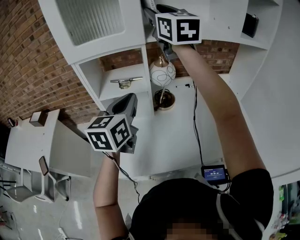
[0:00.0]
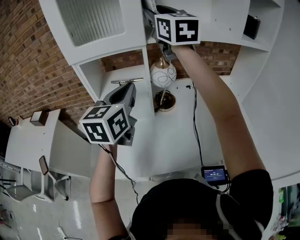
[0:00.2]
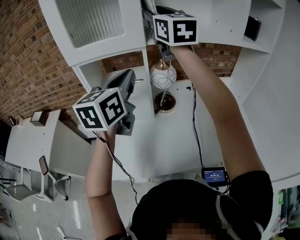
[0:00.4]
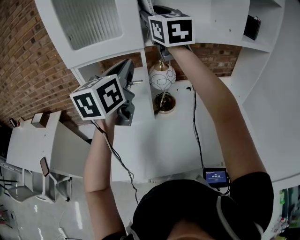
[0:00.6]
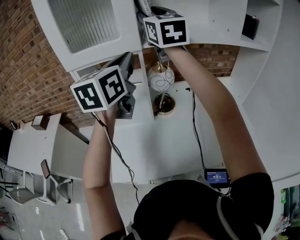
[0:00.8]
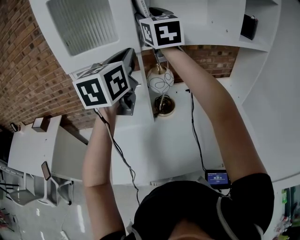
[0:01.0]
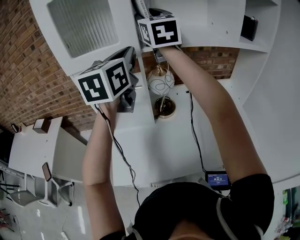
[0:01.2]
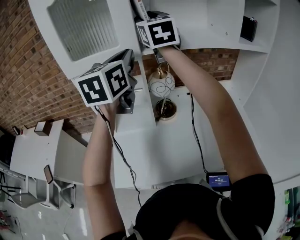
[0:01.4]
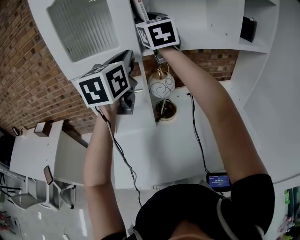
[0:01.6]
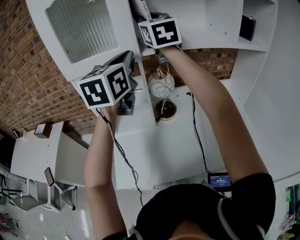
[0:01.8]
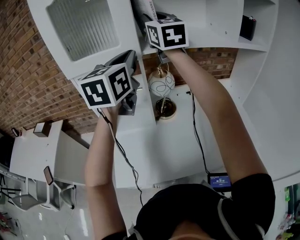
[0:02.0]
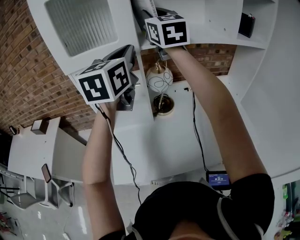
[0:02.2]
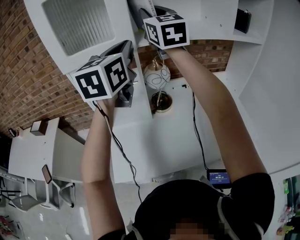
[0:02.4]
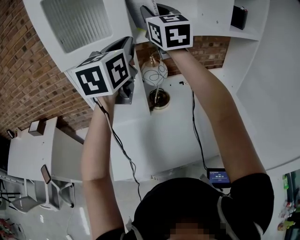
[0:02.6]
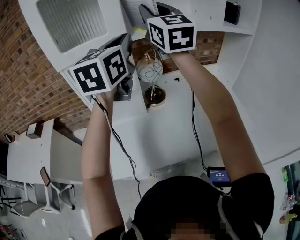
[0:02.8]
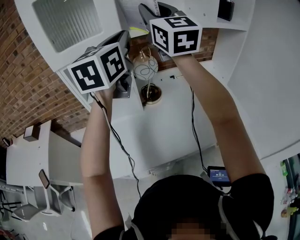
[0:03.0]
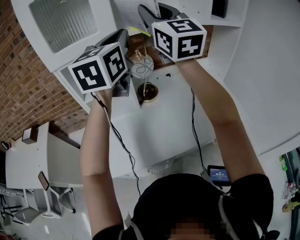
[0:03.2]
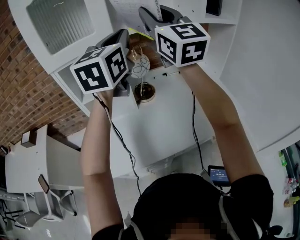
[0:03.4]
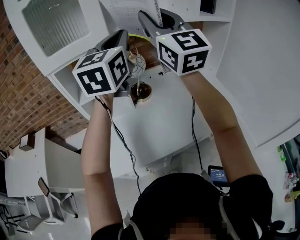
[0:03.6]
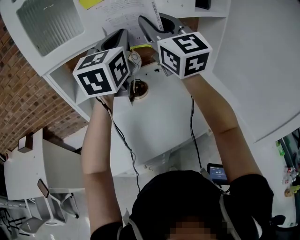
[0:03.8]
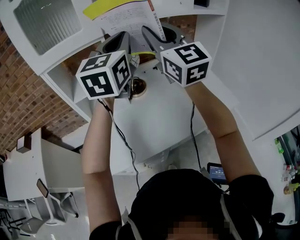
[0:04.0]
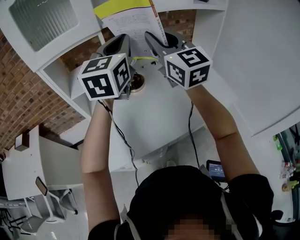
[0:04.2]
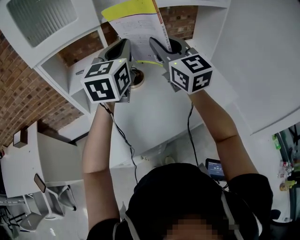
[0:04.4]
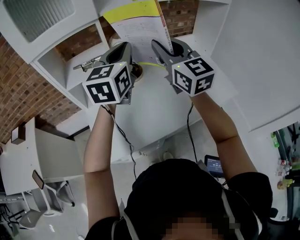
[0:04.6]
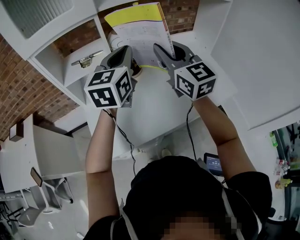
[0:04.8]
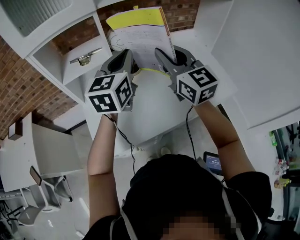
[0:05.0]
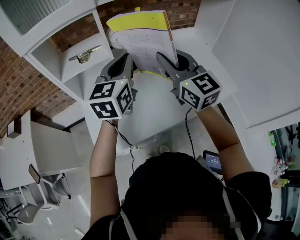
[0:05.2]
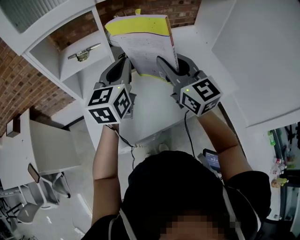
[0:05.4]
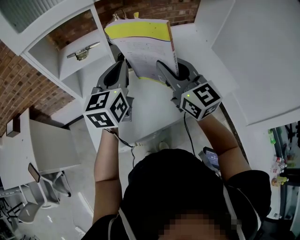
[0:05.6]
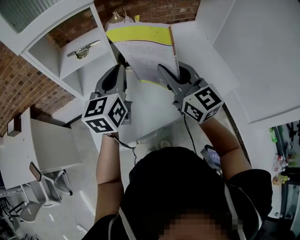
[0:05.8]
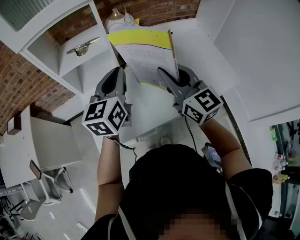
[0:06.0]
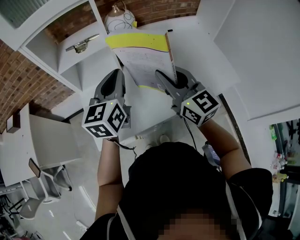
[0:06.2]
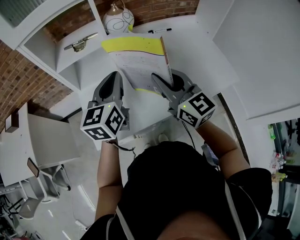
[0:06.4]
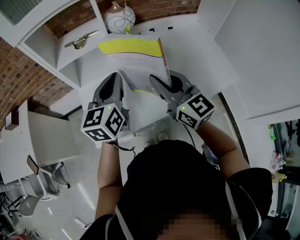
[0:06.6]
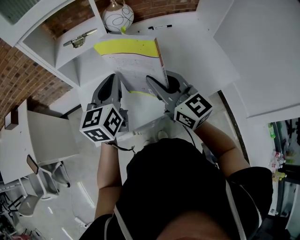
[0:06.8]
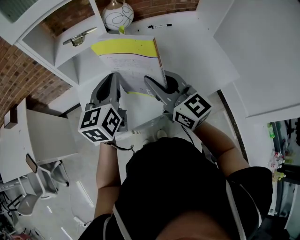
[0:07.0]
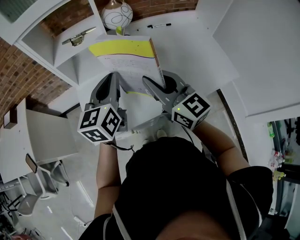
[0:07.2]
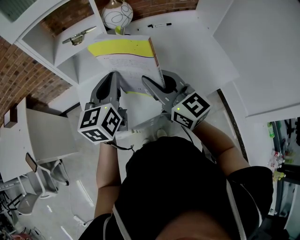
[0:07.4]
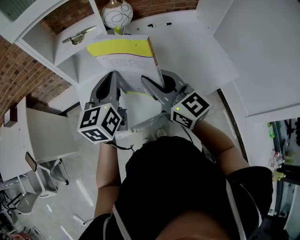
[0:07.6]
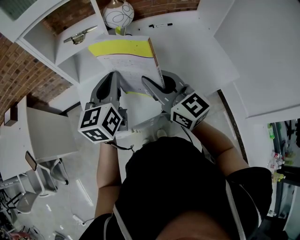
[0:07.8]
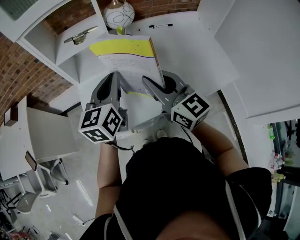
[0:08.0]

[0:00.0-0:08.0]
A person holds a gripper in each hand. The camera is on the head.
0:00.0 to 0:01.6: The left gripper goes roughly 20 cm upward and forward.
0:01.6 to 0:03.2: The right gripper shifts some 15 cm backward and to the right; the left gripper is displaced backward and to the right by about 10 cm.
0:03.2 to 0:04.8: The two grippers go about 20 cm downward.
0:04.8 to 0:06.4: The left gripper heads downward, backward and to the left, covering roughly 15 cm. Meanwhile the right gripper travels downward and backward by some 15 cm.
0:06.4 to 0:08.0: The grippers move only a little.

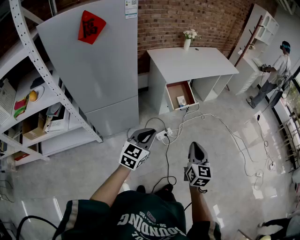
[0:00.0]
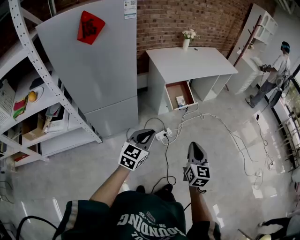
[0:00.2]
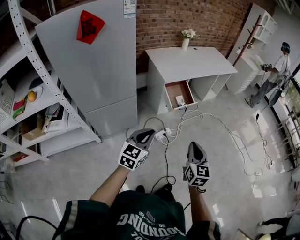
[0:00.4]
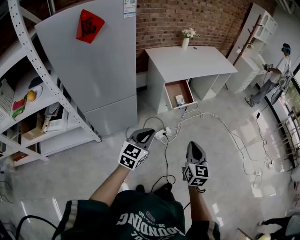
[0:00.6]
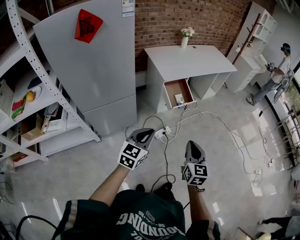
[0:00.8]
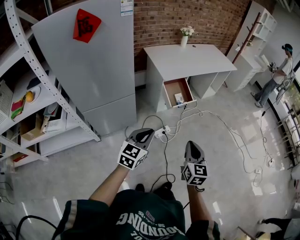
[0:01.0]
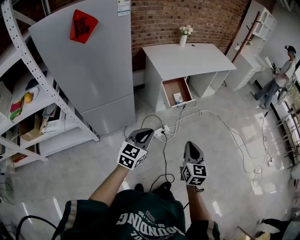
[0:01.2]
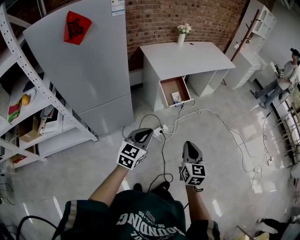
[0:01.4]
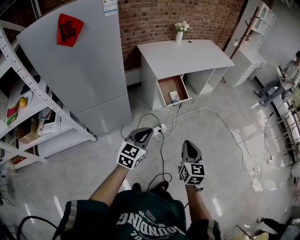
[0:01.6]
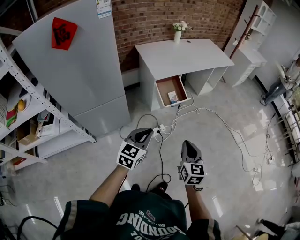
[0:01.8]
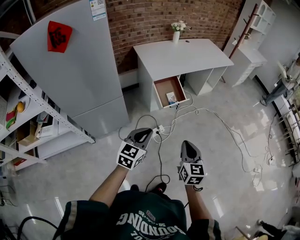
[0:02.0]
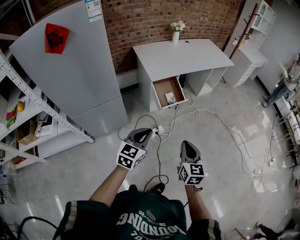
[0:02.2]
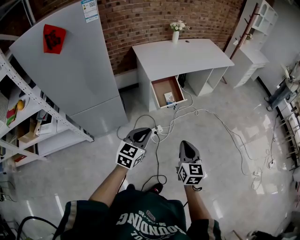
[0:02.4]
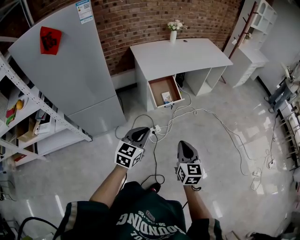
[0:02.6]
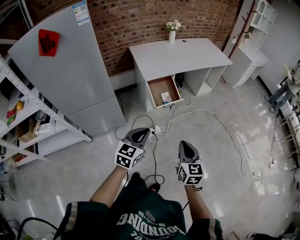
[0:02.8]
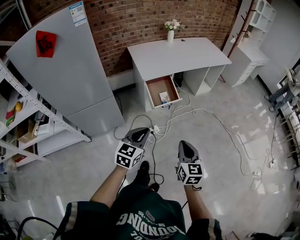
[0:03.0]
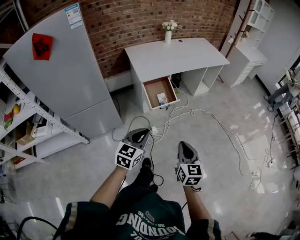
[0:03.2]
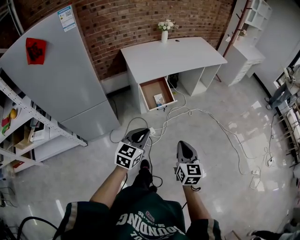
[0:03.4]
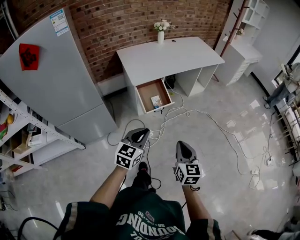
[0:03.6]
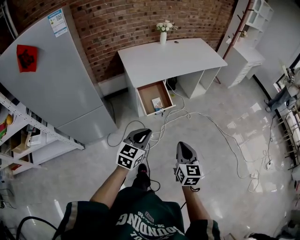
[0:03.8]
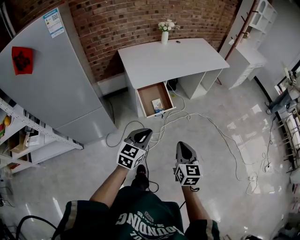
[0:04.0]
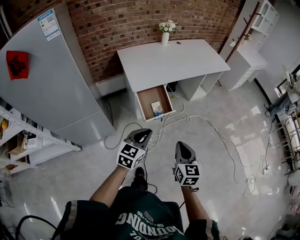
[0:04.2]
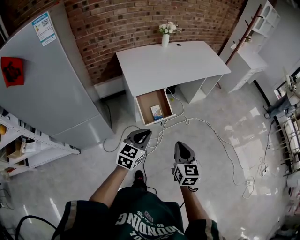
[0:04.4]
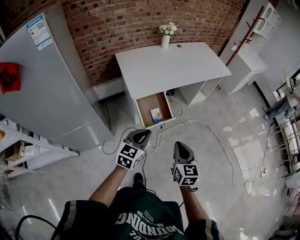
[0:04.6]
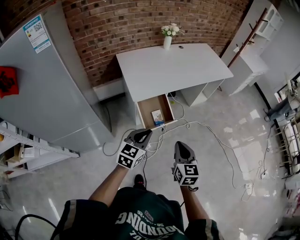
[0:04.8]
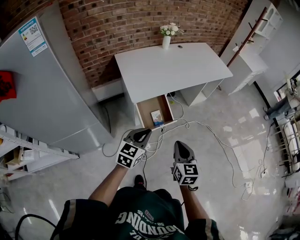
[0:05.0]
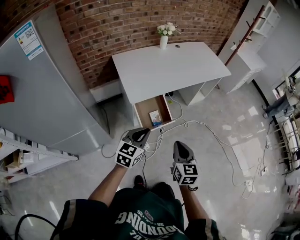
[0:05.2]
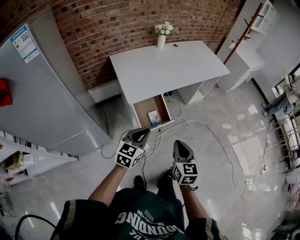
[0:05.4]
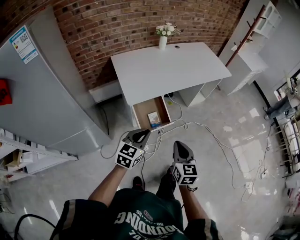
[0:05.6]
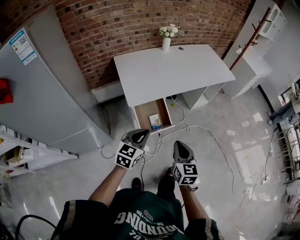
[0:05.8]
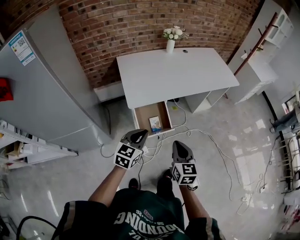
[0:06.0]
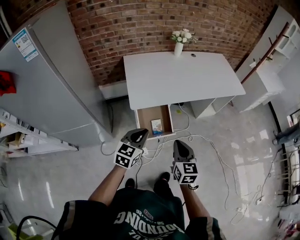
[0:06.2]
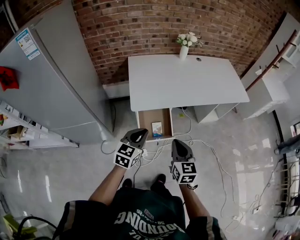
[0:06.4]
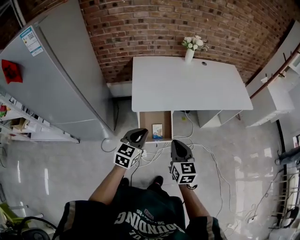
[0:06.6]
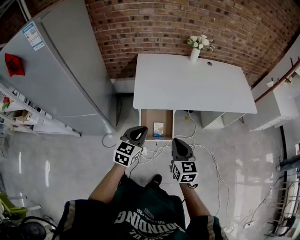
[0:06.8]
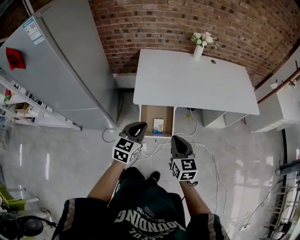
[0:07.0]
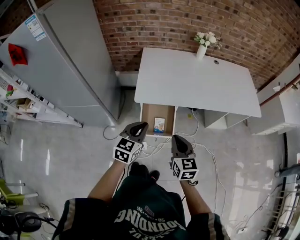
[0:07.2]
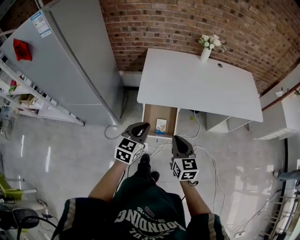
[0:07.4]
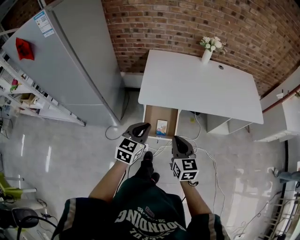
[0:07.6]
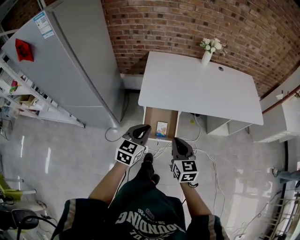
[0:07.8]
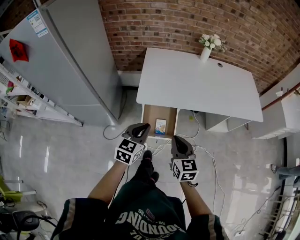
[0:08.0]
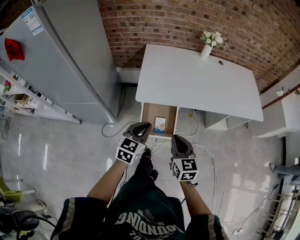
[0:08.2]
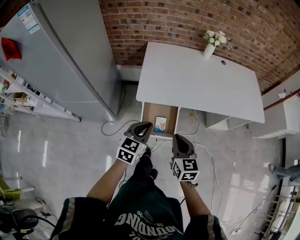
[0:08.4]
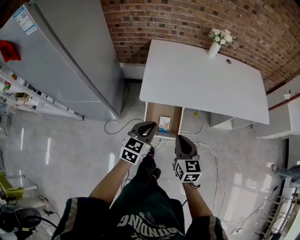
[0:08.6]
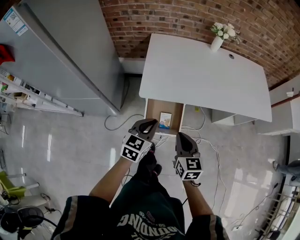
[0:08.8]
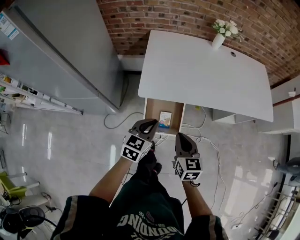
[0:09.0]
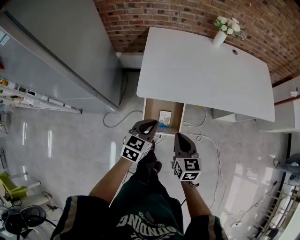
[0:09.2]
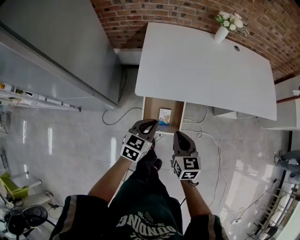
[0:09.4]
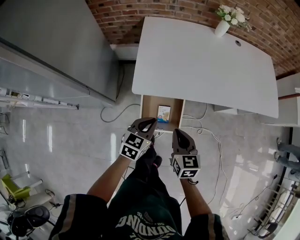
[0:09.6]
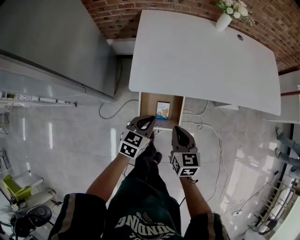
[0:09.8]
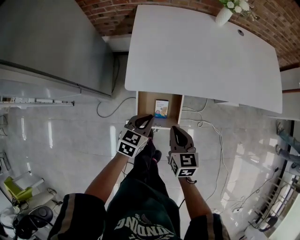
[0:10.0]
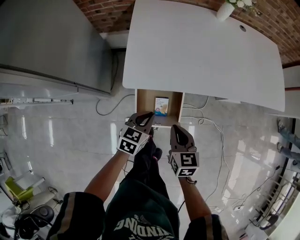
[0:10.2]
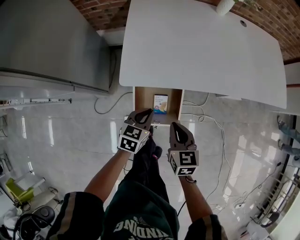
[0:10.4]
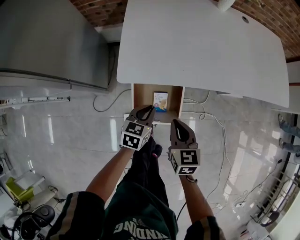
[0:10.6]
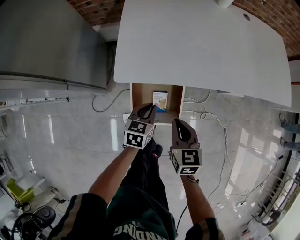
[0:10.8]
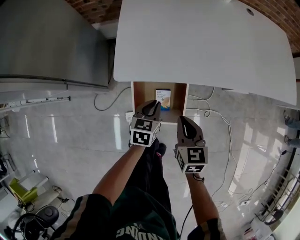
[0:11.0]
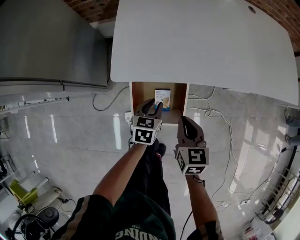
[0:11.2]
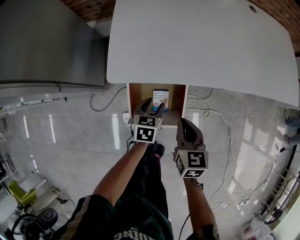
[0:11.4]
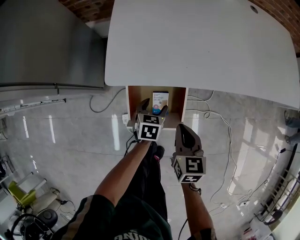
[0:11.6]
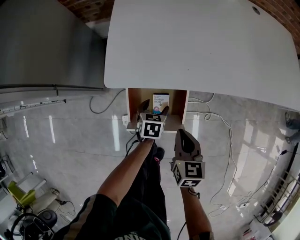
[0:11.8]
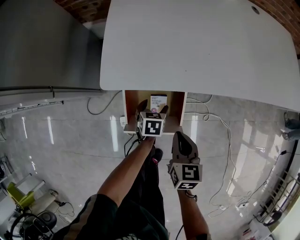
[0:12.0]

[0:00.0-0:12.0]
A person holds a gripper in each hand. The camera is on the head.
0:00.0 to 0:01.6: The left gripper ends up approximately 5 cm from where it was.
0:01.6 to 0:03.0: Both grippers travel together to the right and forward, approximately 15 cm.
0:03.0 to 0:04.4: The two grippers go about 20 cm forward.
0:04.4 to 0:06.0: Both grippers move forward, about 15 cm.
0:06.0 to 0:07.6: The right gripper changes place by about 10 cm, and rotates some 30 degrees, while the left gripper shifts by roughly 10 cm, and changes its angle by some 20 degrees.
0:07.6 to 0:09.0: The grippers both shift downward and forward by some 10 cm.
0:09.0 to 0:10.4: The grippers both shift downward by approximately 15 cm.
0:10.4 to 0:12.0: The left gripper goes roughly 20 cm downward, swivels about 20 degrees, and opens its fingers; the right gripper moves downward, some 10 cm.

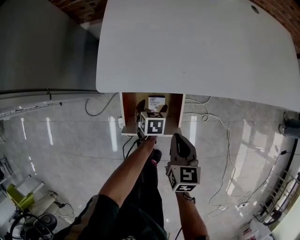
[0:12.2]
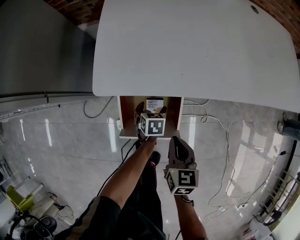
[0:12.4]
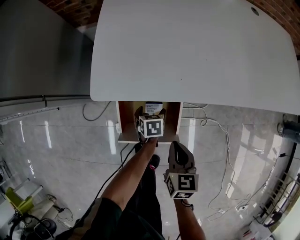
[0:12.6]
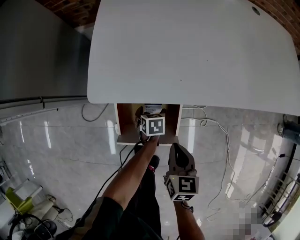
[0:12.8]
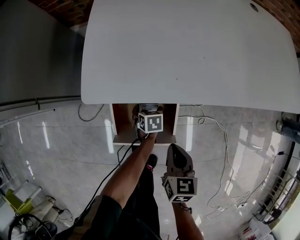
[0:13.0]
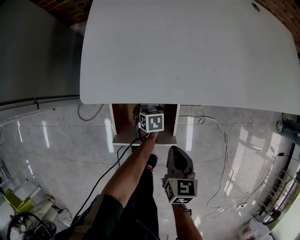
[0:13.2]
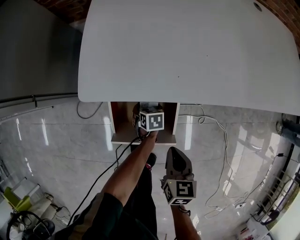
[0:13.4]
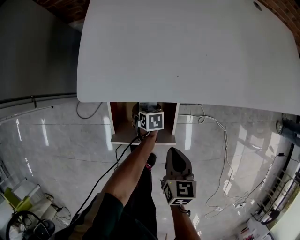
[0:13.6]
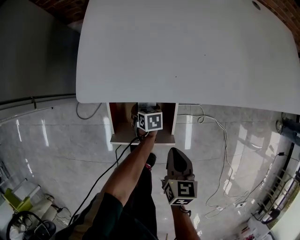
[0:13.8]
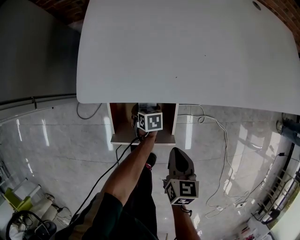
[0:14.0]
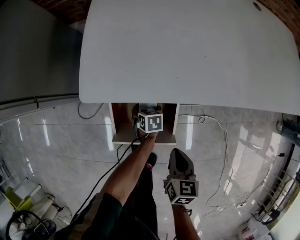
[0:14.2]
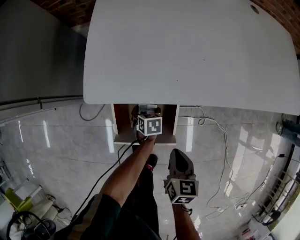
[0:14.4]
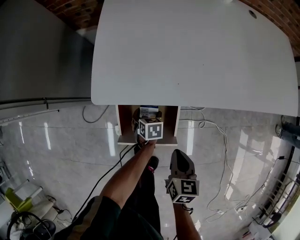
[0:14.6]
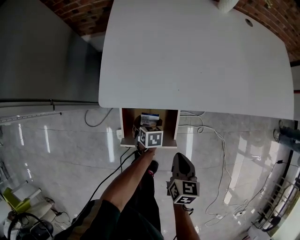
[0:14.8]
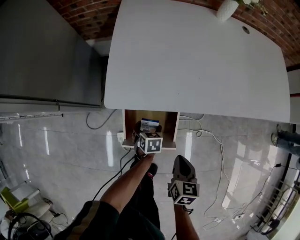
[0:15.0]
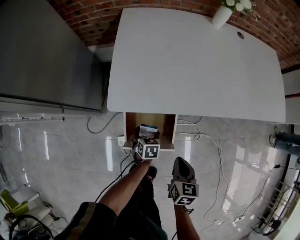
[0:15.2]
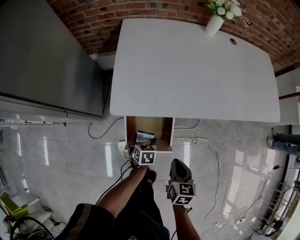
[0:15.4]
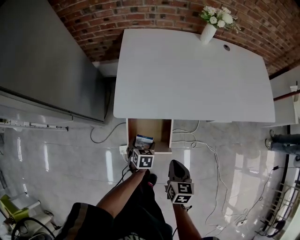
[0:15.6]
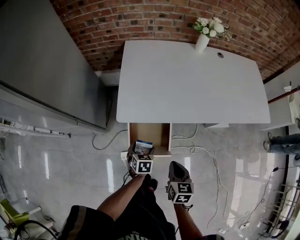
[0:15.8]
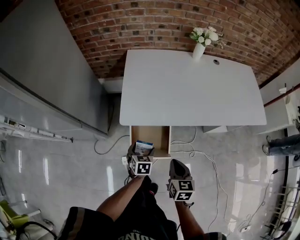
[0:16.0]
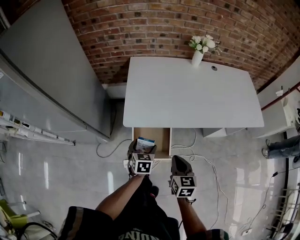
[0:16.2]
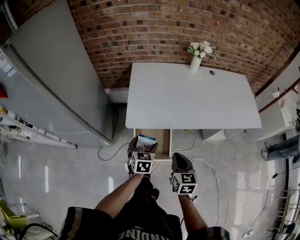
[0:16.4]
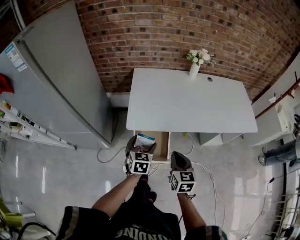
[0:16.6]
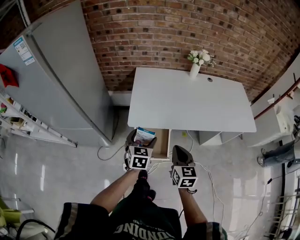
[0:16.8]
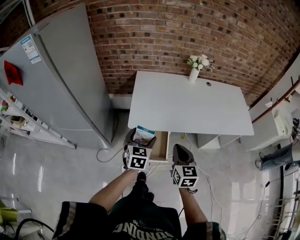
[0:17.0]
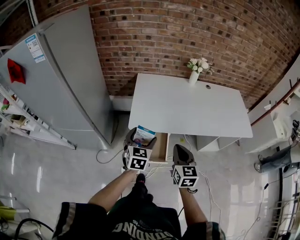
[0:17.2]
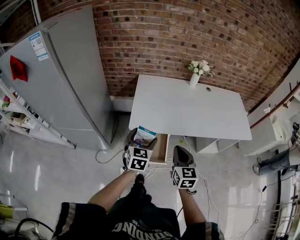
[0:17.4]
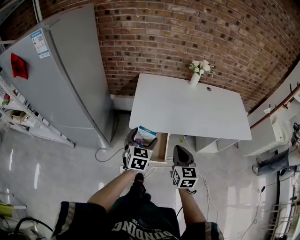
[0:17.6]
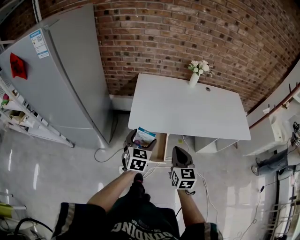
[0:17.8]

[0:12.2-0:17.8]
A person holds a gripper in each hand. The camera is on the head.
0:12.2 to 0:13.6: The left gripper shifts approximately 10 cm downward.
0:13.6 to 0:15.0: The left gripper is displaced upward by about 10 cm. The right gripper goes about 5 cm upward.
0:15.0 to 0:16.4: The left gripper goes roughly 30 cm upward, and turns by some 30 degrees. The right gripper shifts approximately 20 cm upward, and changes its angle by about 20 degrees.
0:16.4 to 0:17.8: The grippers both shift upward by roughly 10 cm.
